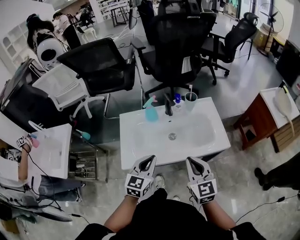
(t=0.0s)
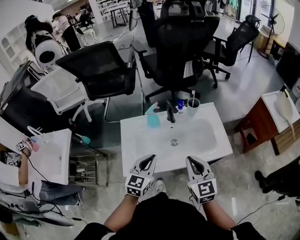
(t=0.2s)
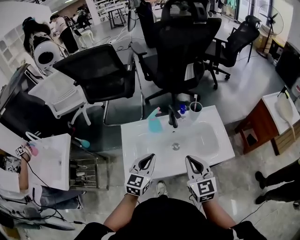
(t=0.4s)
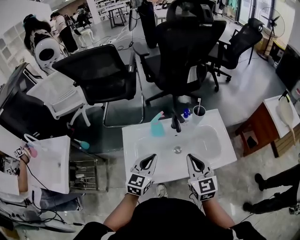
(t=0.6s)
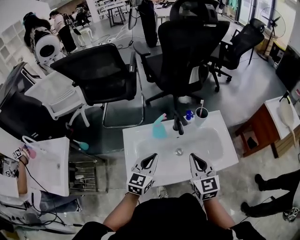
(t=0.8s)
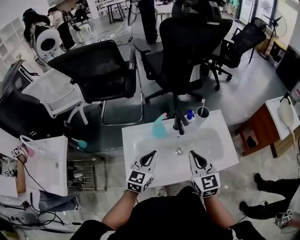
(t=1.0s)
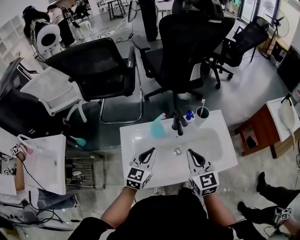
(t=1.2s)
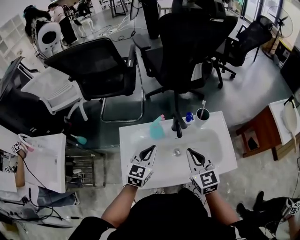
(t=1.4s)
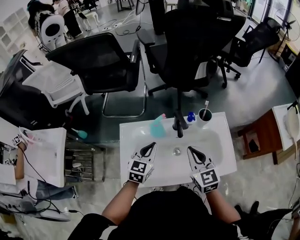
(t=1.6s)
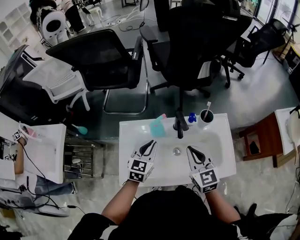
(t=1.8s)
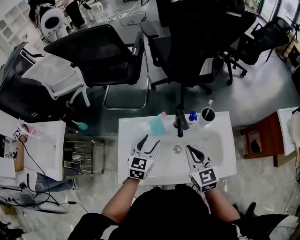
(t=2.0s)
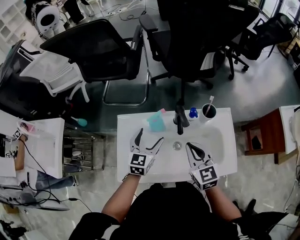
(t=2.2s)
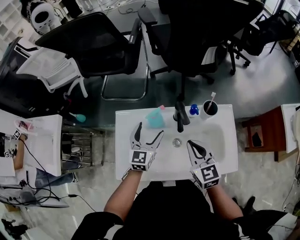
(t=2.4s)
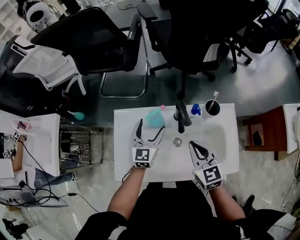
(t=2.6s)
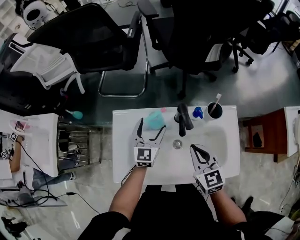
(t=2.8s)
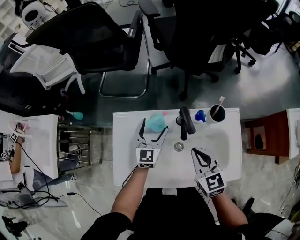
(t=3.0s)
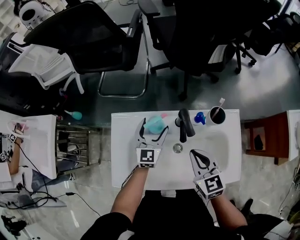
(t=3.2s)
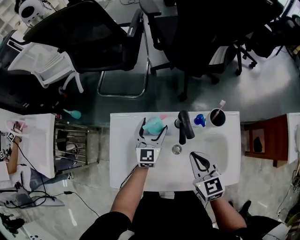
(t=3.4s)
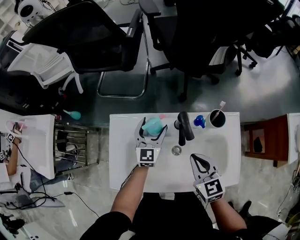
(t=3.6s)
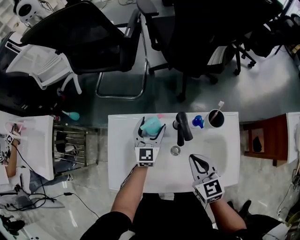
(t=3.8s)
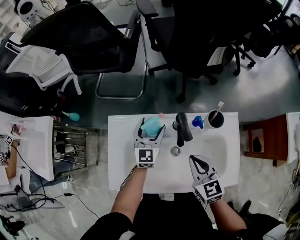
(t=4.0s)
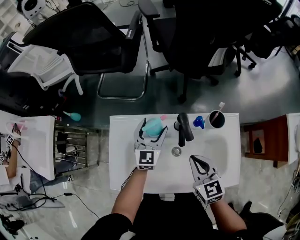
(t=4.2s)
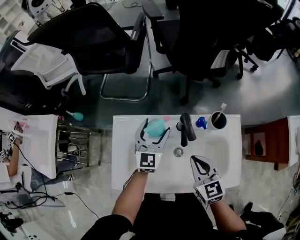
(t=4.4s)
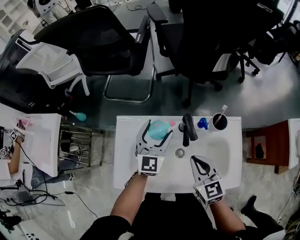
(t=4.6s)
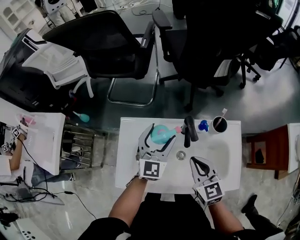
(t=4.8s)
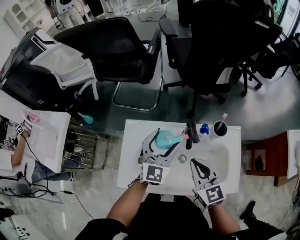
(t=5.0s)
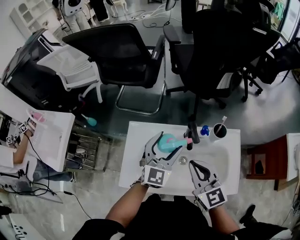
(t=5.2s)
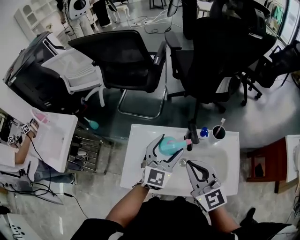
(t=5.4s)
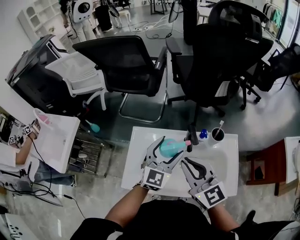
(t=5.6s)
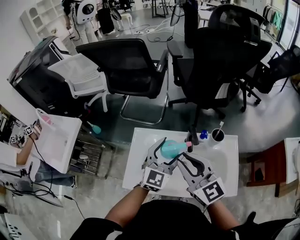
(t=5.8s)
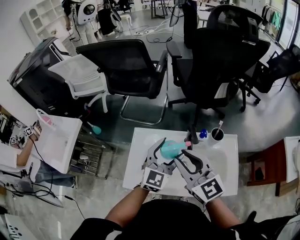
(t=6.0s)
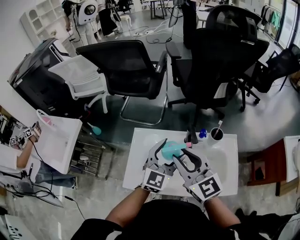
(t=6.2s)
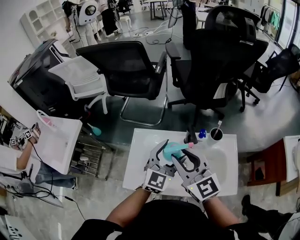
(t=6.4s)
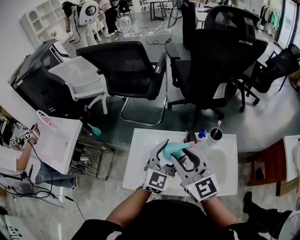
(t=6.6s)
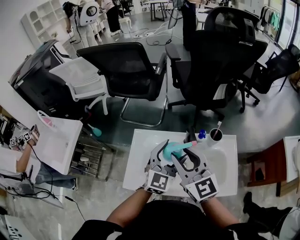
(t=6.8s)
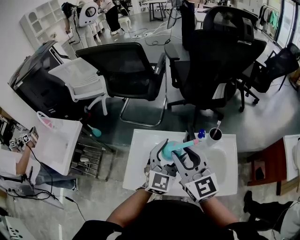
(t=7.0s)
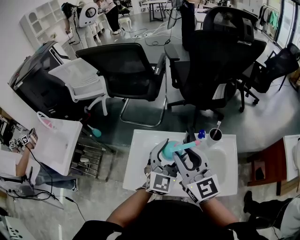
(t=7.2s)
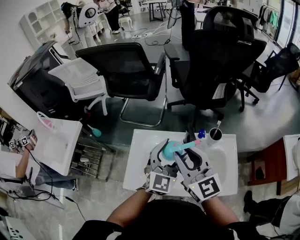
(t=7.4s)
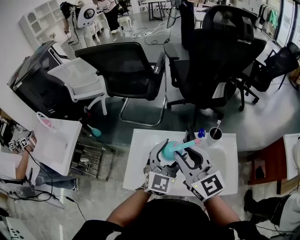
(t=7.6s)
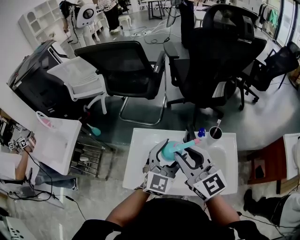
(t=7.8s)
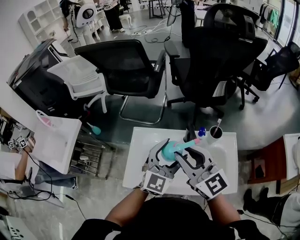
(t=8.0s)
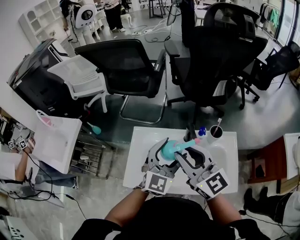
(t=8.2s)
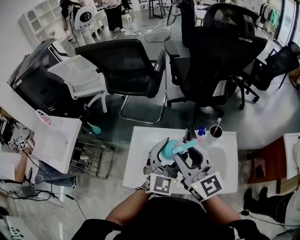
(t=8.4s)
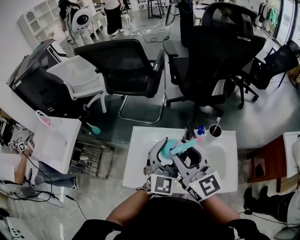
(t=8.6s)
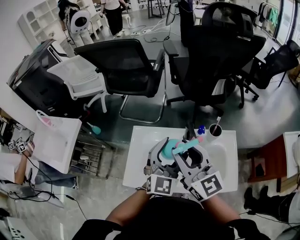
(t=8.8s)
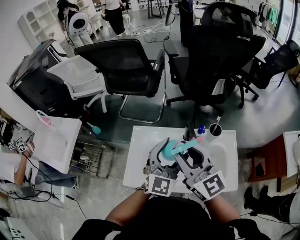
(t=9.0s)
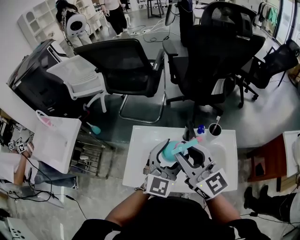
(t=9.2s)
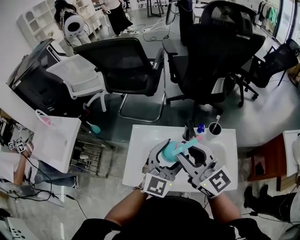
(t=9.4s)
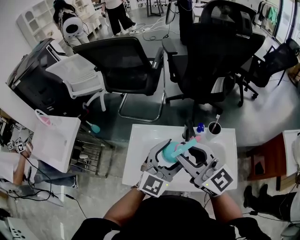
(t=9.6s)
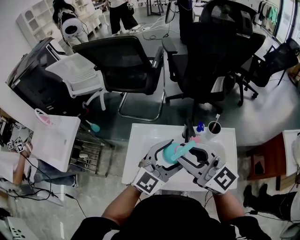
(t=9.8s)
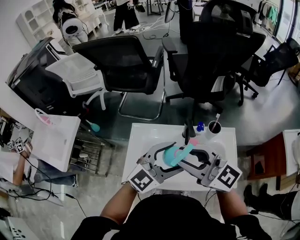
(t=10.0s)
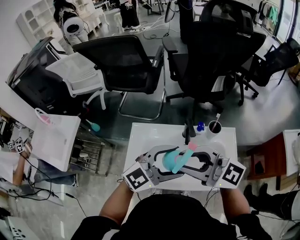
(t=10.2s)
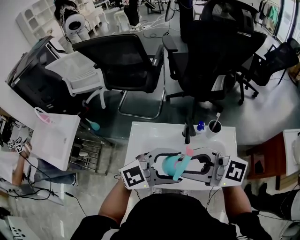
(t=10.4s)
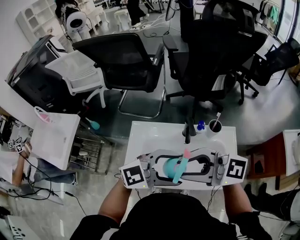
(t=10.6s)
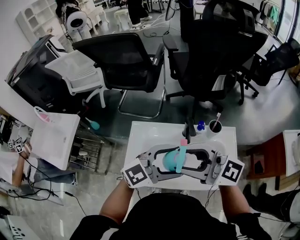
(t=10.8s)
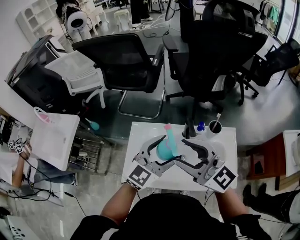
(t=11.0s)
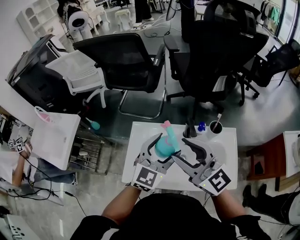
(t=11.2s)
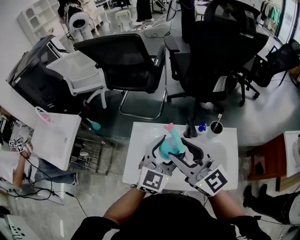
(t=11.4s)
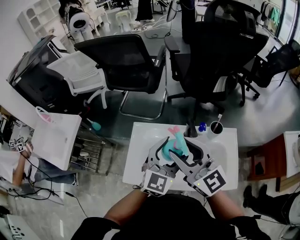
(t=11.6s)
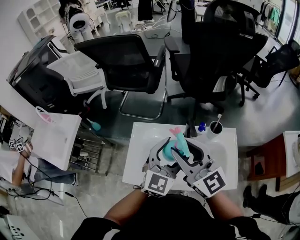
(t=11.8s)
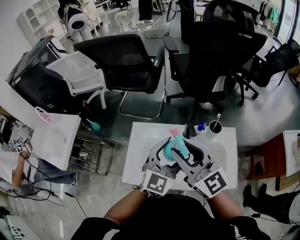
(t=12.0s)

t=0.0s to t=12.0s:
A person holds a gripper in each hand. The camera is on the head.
t=0.0s to t=1.6s: The two grippers go approximately 20 cm forward.
t=1.6s to t=3.0s: The right gripper moves downward, approximately 10 cm; the left gripper goes approximately 15 cm forward and downward, and opens.
t=3.0s to t=4.4s: The grippers move only a little.
t=4.4s to t=6.0s: The right gripper travels upward and to the left by some 25 cm, changes its angle by some 30 degrees, and opens its fingers; the left gripper goes roughly 20 cm upward and backward.
t=6.0s to t=9.0s: The grippers move only a little.
t=9.0s to t=10.4s: The right gripper shifts by approximately 10 cm, and swivels roughly 40 degrees. Meanwhile the left gripper moves about 10 cm, and rotates about 50 degrees.
t=10.4s to t=12.0s: The left gripper changes place by about 10 cm, and turns by approximately 50 degrees. Meanwhile the right gripper shifts by some 5 cm, and rotates approximately 40 degrees.

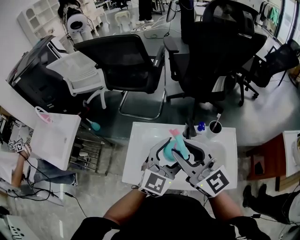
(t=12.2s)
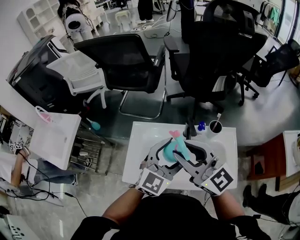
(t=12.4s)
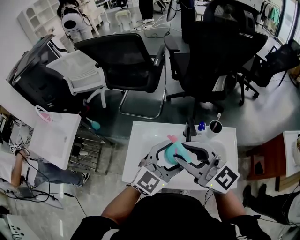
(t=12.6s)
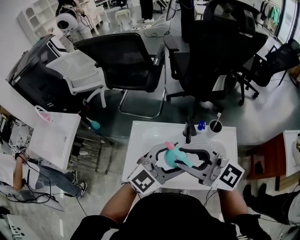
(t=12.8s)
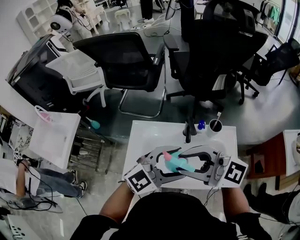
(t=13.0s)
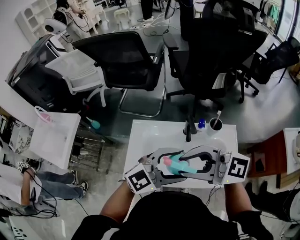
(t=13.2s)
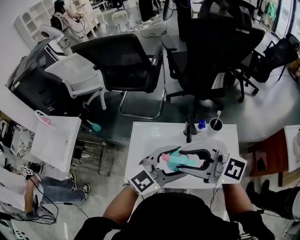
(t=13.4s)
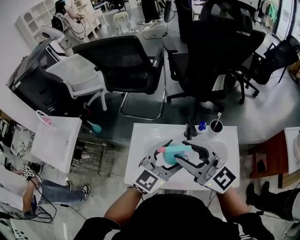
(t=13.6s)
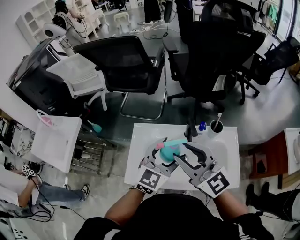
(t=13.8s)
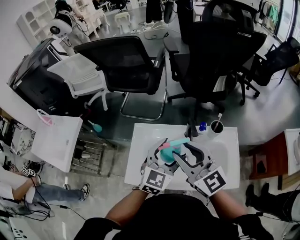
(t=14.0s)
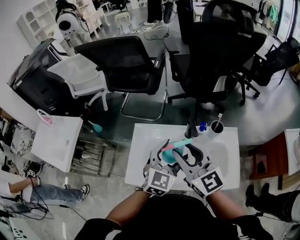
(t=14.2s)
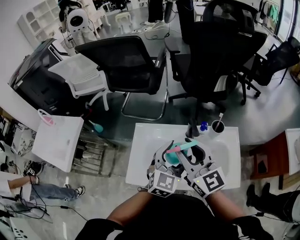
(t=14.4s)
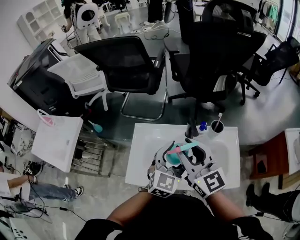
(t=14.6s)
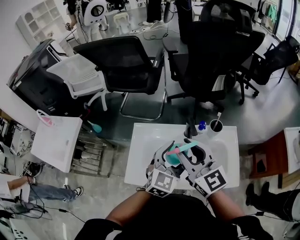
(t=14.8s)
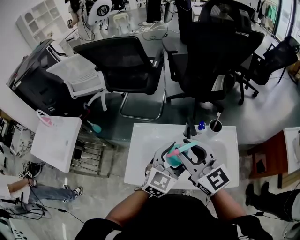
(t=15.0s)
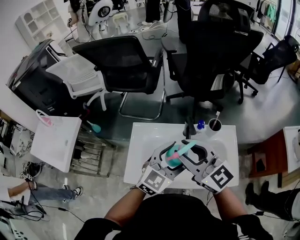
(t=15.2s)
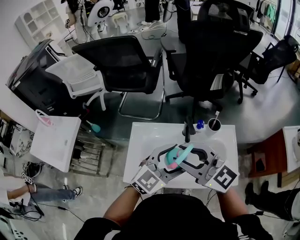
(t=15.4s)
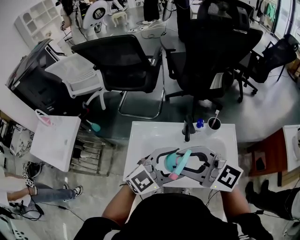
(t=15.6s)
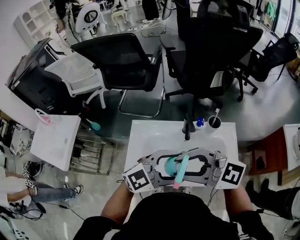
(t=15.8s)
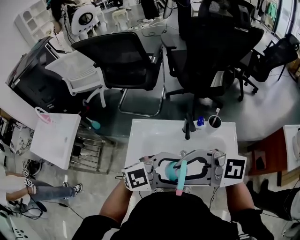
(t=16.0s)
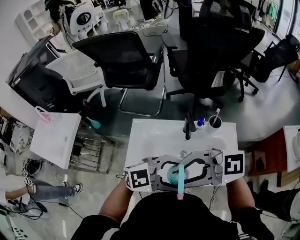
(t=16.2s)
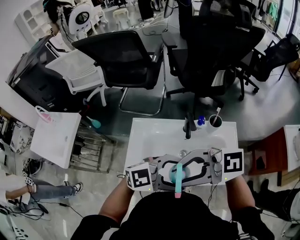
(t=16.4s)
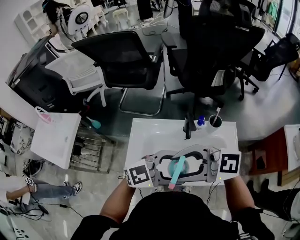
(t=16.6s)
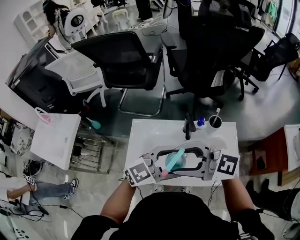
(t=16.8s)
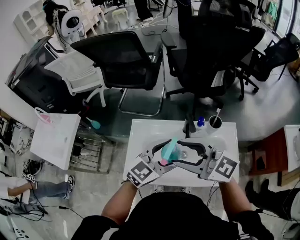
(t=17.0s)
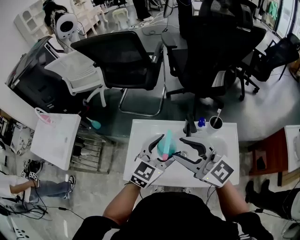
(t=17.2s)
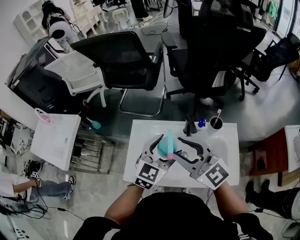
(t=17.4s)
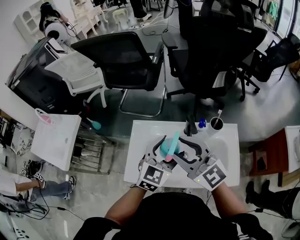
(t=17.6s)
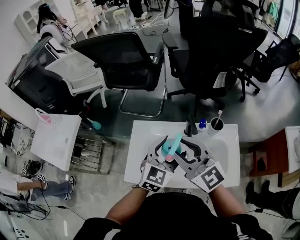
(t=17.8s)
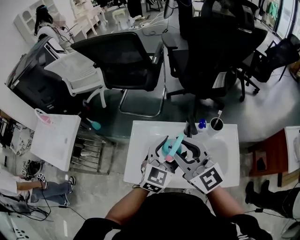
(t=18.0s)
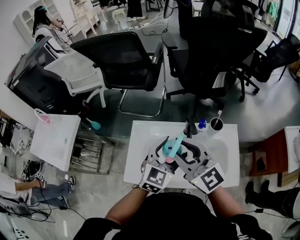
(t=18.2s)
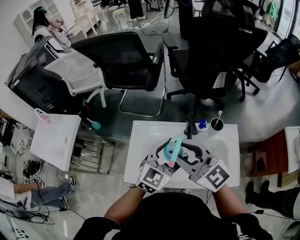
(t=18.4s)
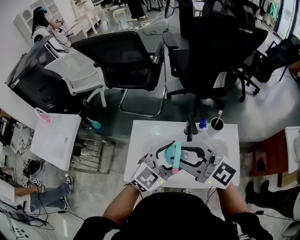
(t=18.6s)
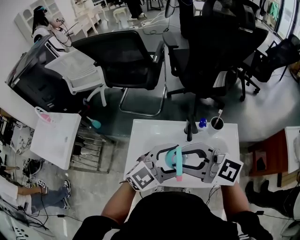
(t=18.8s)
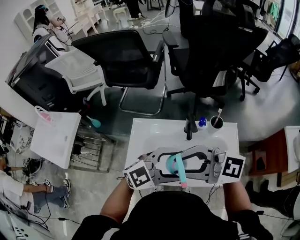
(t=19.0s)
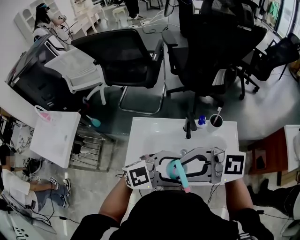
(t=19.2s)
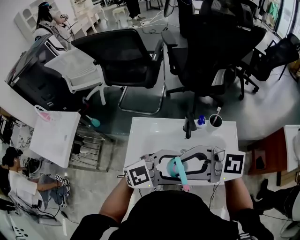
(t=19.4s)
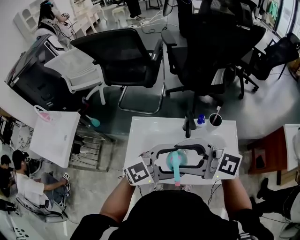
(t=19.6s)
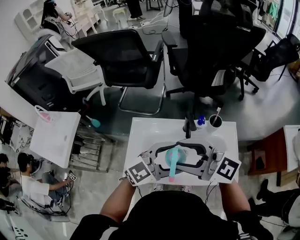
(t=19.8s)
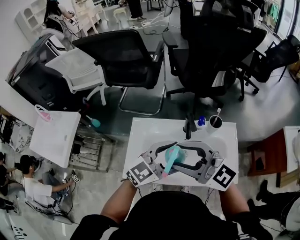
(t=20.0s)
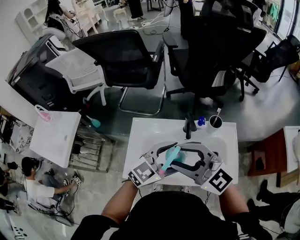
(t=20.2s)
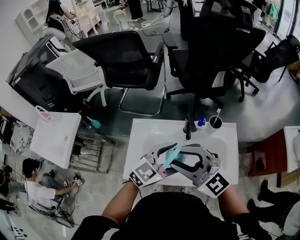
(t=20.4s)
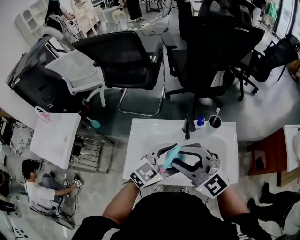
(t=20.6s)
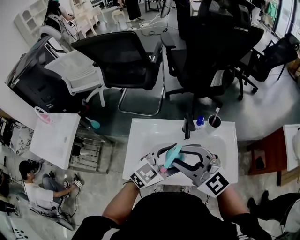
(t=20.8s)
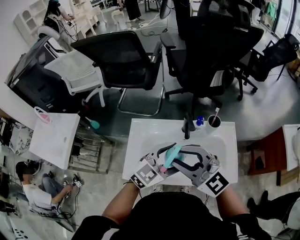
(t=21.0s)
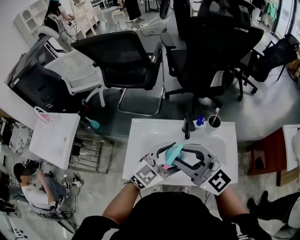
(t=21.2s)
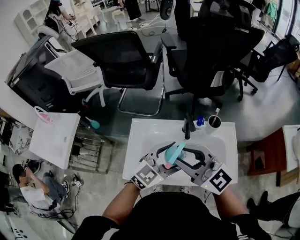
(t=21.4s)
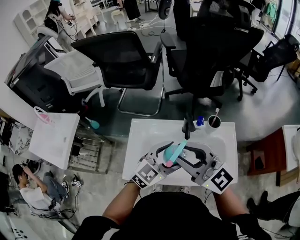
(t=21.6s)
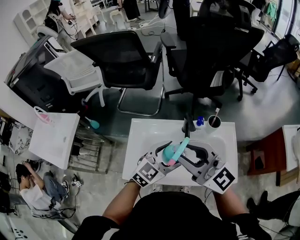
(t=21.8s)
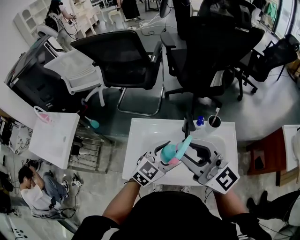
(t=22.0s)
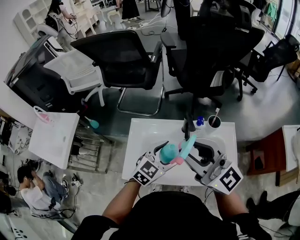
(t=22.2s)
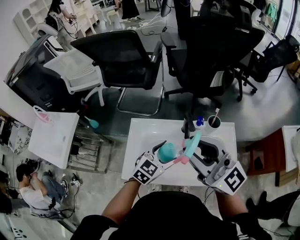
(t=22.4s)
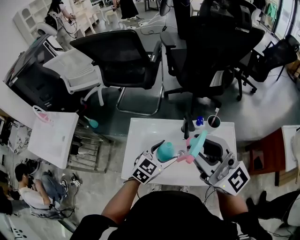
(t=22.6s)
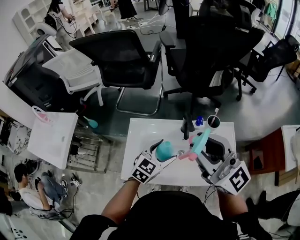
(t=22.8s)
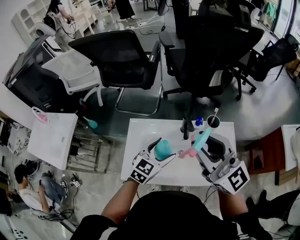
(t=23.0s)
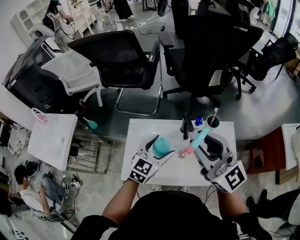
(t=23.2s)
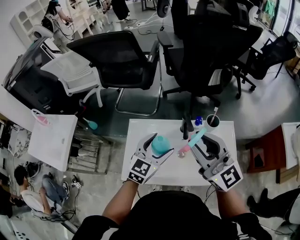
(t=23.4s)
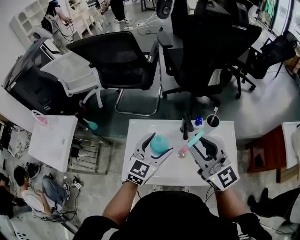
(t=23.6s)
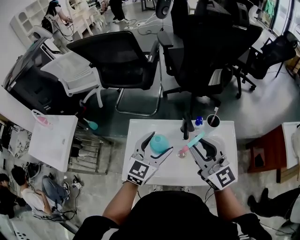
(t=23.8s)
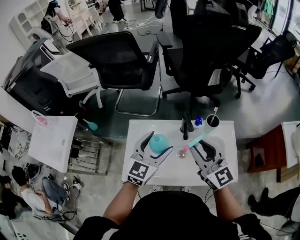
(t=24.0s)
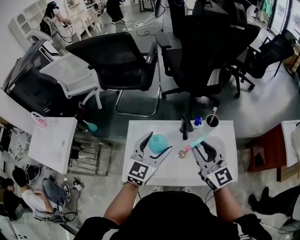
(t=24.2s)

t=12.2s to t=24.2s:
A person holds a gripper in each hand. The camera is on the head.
t=13.8s to t=15.2s: The grippers move only a little.
t=15.2s to t=16.6s: The left gripper changes place by some 10 cm, and changes its angle by approximately 40 degrees. Meanwhile the right gripper moves approximately 10 cm, and changes its angle by approximately 50 degrees.
t=16.6s to t=18.2s: The left gripper changes place by some 15 cm, and turns by approximately 50 degrees; the right gripper moves about 10 cm, and swivels about 50 degrees.
t=18.2s to t=19.8s: The left gripper swivels roughly 40 degrees, while the right gripper rotates some 30 degrees, and opens up.
t=19.8s to t=21.2s: The right gripper closes.
t=21.2s to t=22.6s: The left gripper moves downward, approximately 10 cm; the right gripper is displaced upward by about 10 cm.
t=22.6s to t=24.2s: The right gripper is displaced downward by approximately 15 cm, and turns by approximately 30 degrees. The left gripper is displaced upward by some 10 cm, and rotates approximately 20 degrees.
